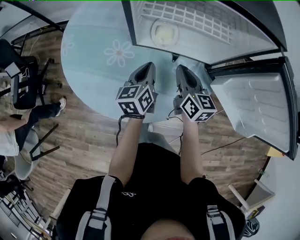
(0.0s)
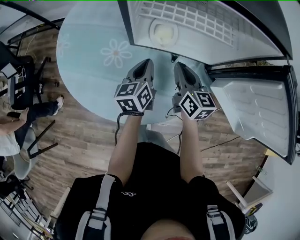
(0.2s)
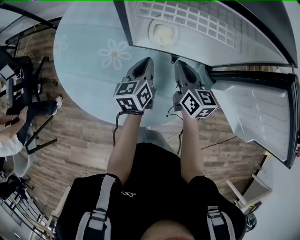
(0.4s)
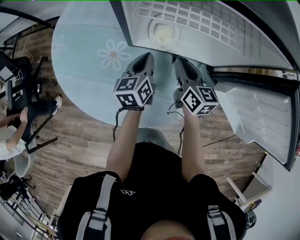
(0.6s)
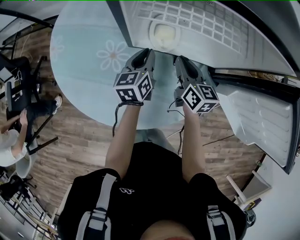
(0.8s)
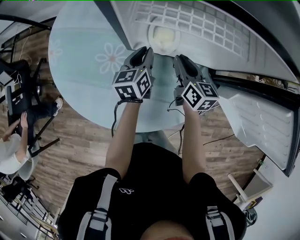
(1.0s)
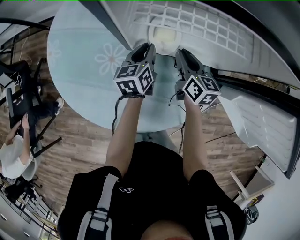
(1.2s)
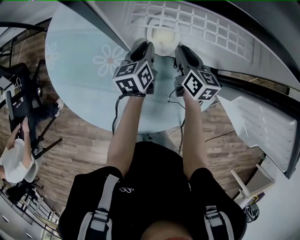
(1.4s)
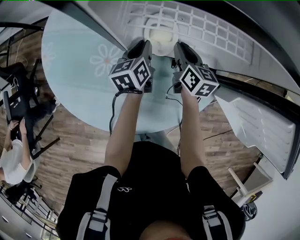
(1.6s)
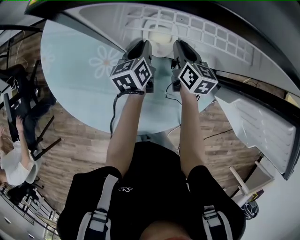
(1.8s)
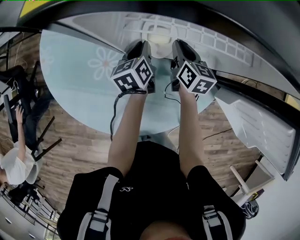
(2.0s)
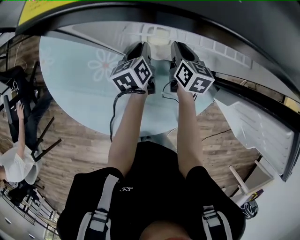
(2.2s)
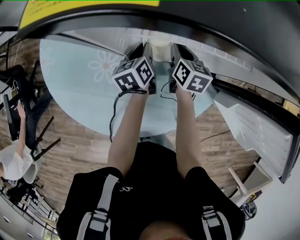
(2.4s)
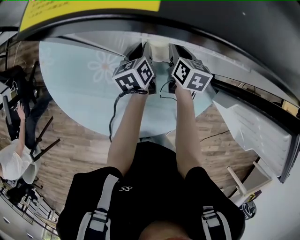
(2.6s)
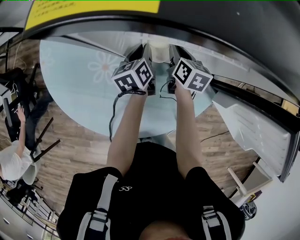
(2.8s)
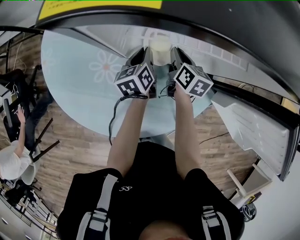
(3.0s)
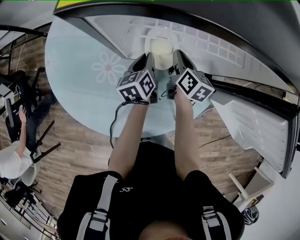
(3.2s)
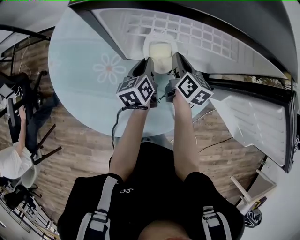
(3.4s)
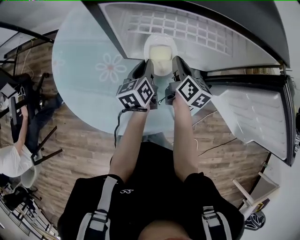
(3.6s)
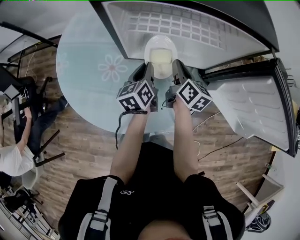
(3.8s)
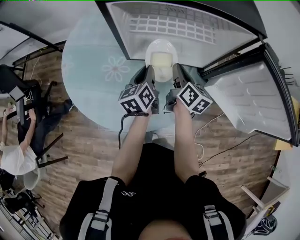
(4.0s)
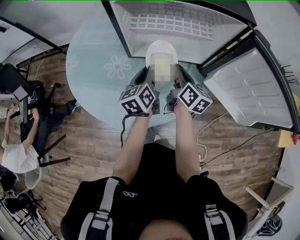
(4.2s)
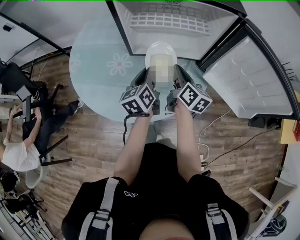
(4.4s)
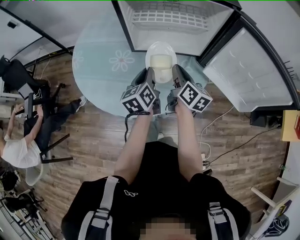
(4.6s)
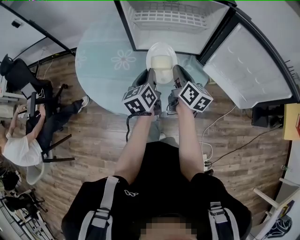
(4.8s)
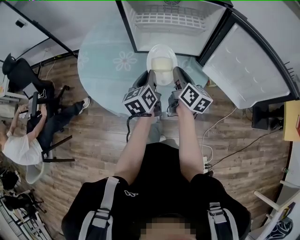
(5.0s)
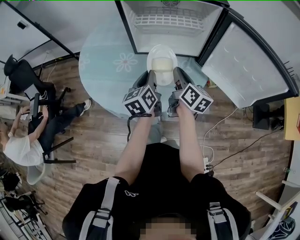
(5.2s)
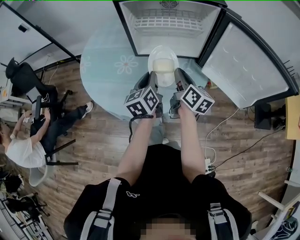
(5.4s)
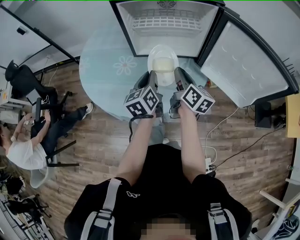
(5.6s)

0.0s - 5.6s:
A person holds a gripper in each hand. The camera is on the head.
0.0s - 1.4s: The two grippers go roughly 15 cm forward and downward.
1.4s - 2.8s: The grippers make only small movements.
2.8s - 4.2s: The grippers both shift backward and upward by about 20 cm. The right gripper changes its angle by roughly 30 degrees.
4.2s - 5.6s: The left gripper is displaced backward and upward by roughly 10 cm; the right gripper travels backward by approximately 10 cm.

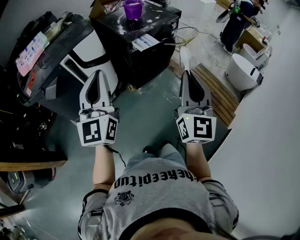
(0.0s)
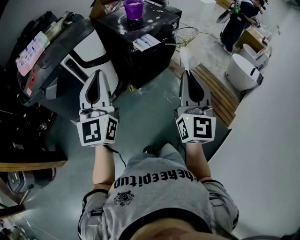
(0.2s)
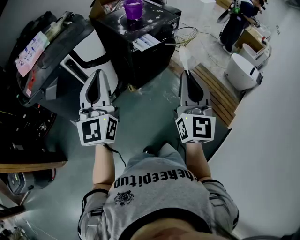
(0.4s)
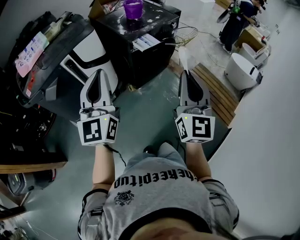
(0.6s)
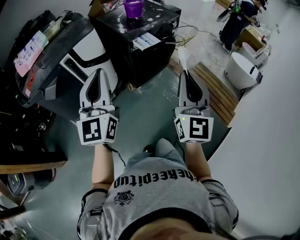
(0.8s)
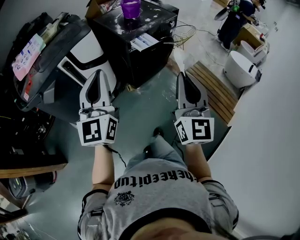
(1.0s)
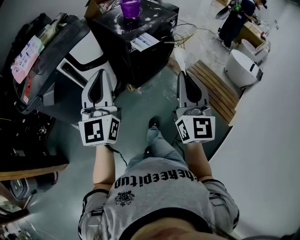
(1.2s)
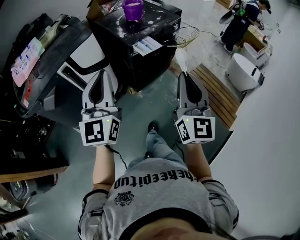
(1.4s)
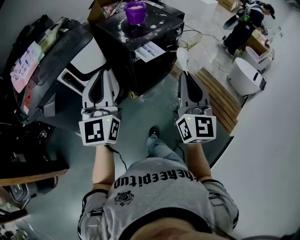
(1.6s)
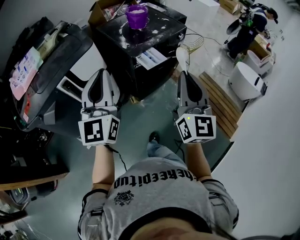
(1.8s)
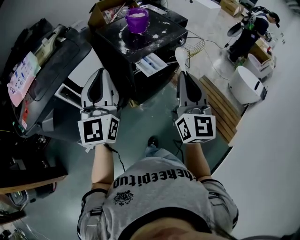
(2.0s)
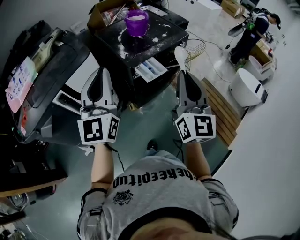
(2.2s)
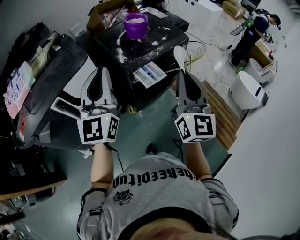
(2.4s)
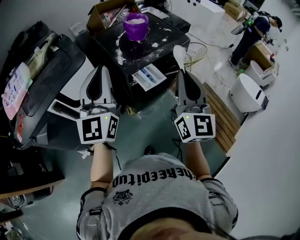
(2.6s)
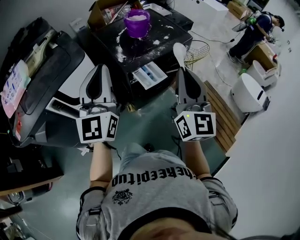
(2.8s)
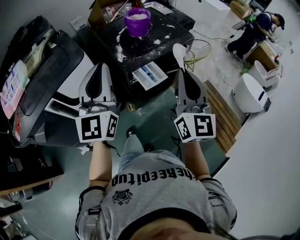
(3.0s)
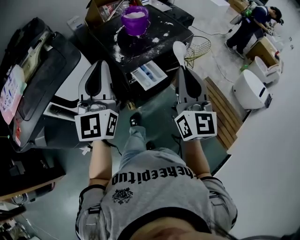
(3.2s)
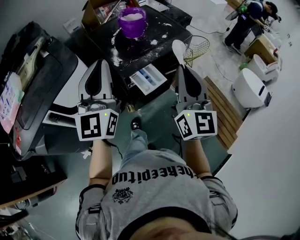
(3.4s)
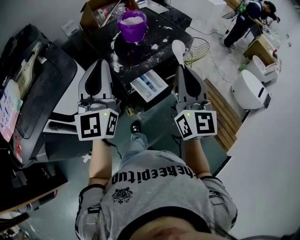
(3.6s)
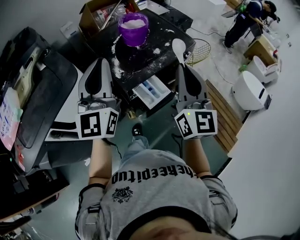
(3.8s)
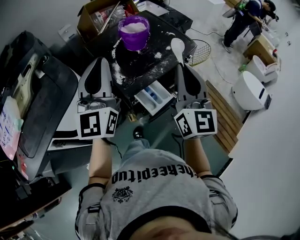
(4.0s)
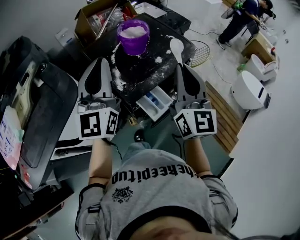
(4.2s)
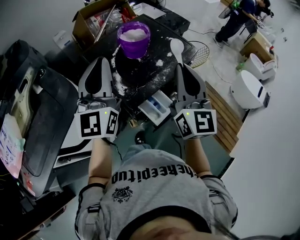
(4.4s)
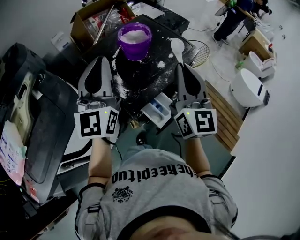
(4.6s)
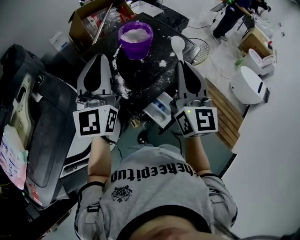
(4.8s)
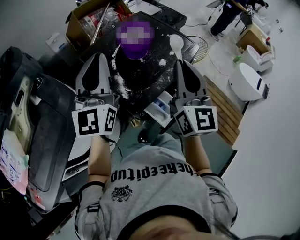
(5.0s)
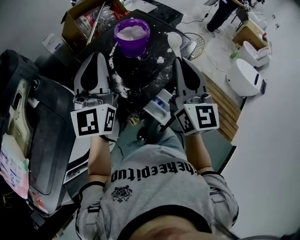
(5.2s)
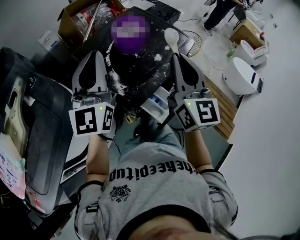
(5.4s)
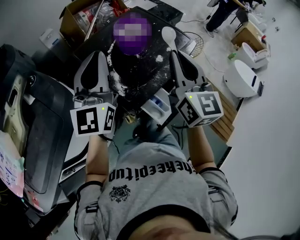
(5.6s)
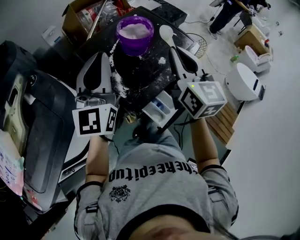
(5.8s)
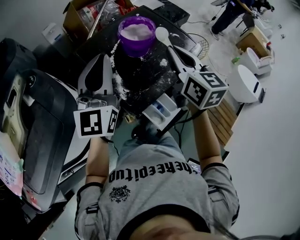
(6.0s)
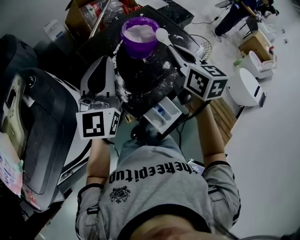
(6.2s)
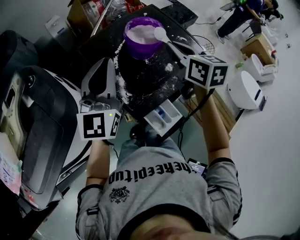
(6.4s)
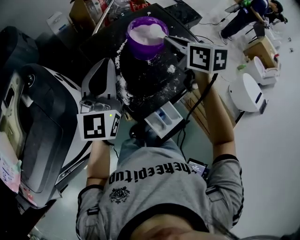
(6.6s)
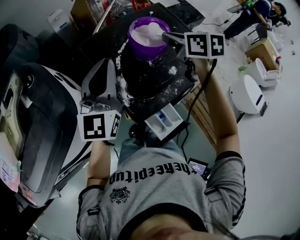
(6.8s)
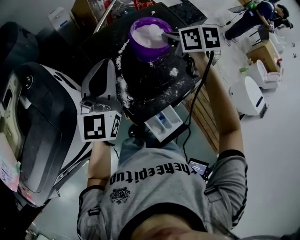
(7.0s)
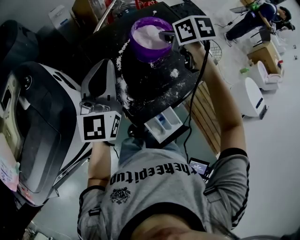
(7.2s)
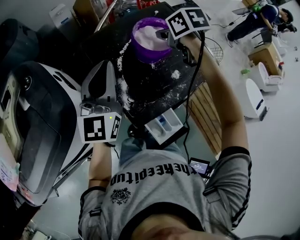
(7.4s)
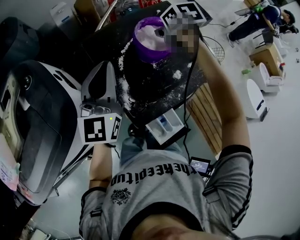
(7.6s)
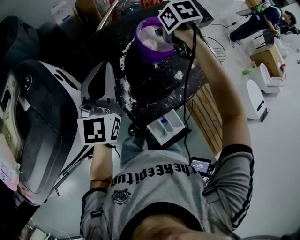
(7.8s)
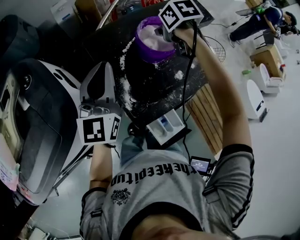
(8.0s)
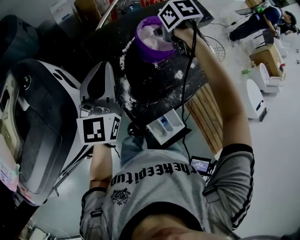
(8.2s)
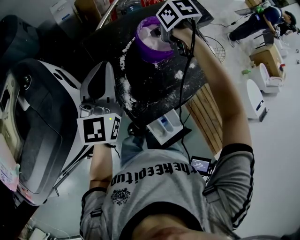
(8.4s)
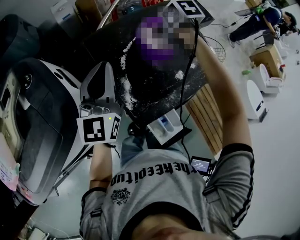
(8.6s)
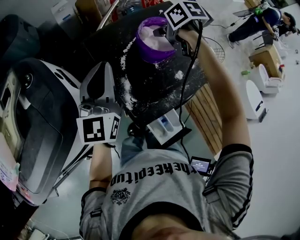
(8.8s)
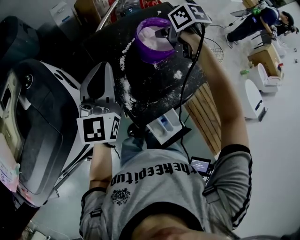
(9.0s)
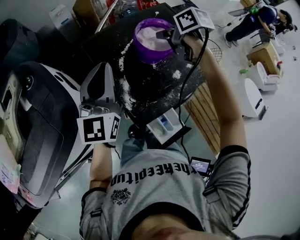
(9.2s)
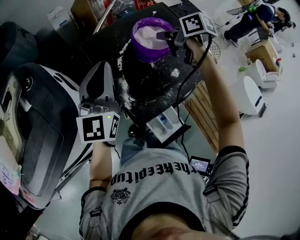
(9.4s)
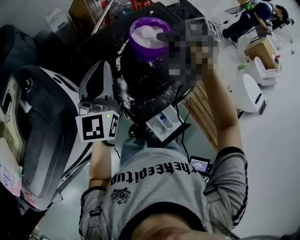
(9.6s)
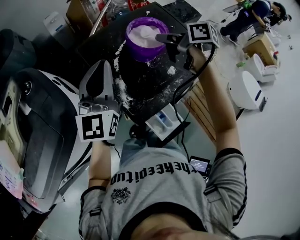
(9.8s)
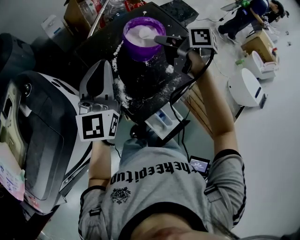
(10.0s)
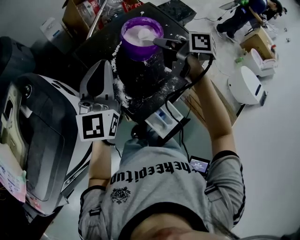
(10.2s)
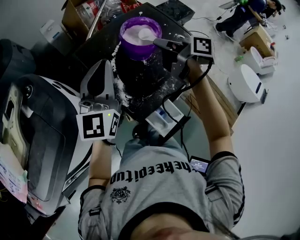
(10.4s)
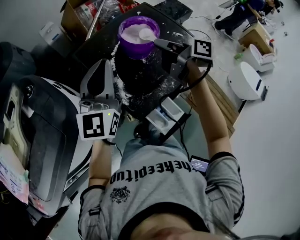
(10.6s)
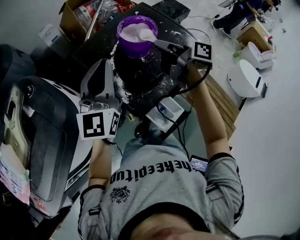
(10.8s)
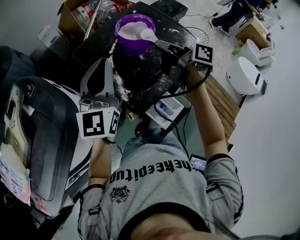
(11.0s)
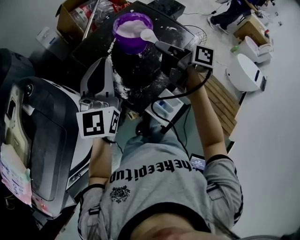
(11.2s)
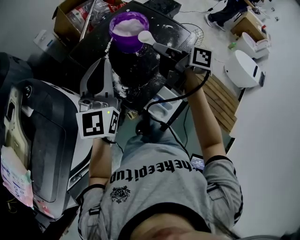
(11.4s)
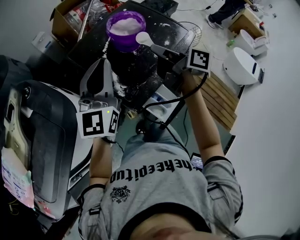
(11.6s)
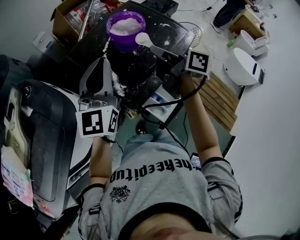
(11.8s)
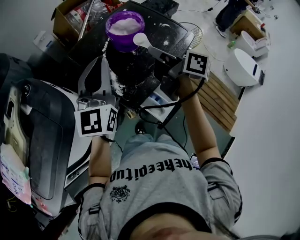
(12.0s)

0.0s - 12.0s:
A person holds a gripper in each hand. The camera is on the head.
0.0s - 1.6s: The two grippers go some 15 cm forward.
1.6s - 3.0s: The grippers both shift forward by roughly 25 cm.
3.0s - 4.4s: Both grippers travel together forward, roughly 25 cm.
4.4s - 6.0s: The right gripper heads forward and to the left, covering roughly 15 cm, and swivels roughly 30 degrees, while the left gripper shifts some 10 cm forward.
6.0s - 7.6s: The right gripper heads forward and downward, covering some 25 cm, and points its fingers approximately 50 degrees further downward; the left gripper travels forward and downward by about 10 cm.
7.6s - 9.0s: The grippers move only a little.
9.0s - 10.4s: The left gripper moves about 5 cm. The right gripper shifts roughly 10 cm backward, and tips its fingers upward by roughly 40 degrees.
10.4s - 12.0s: The right gripper moves backward, some 10 cm, while the left gripper moves backward, about 5 cm.

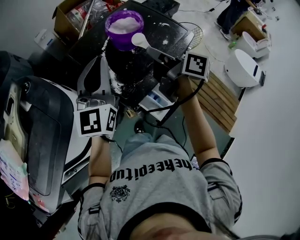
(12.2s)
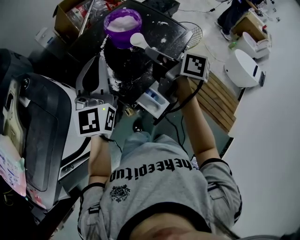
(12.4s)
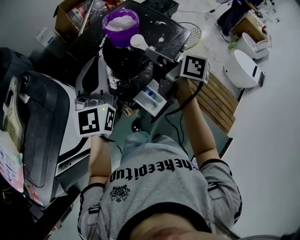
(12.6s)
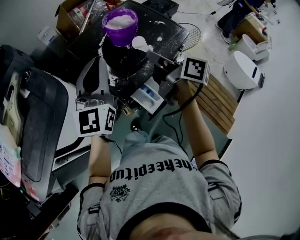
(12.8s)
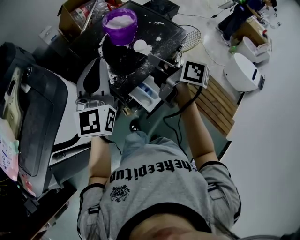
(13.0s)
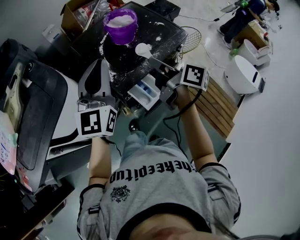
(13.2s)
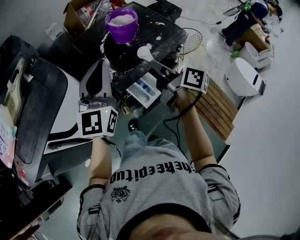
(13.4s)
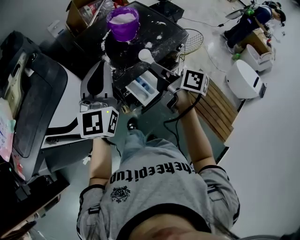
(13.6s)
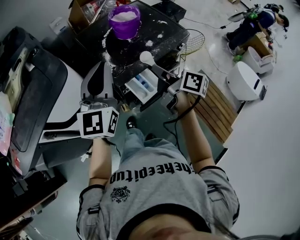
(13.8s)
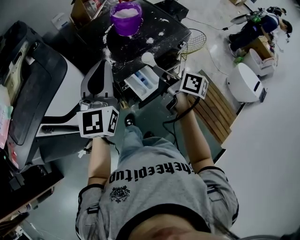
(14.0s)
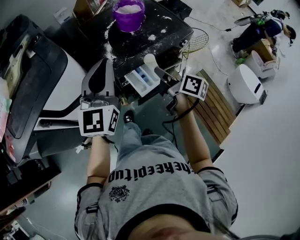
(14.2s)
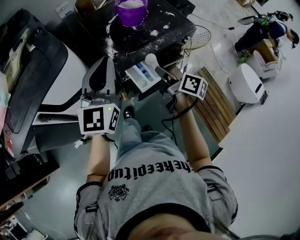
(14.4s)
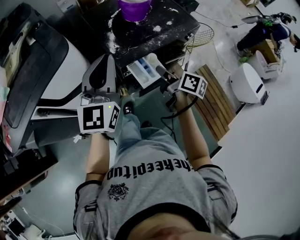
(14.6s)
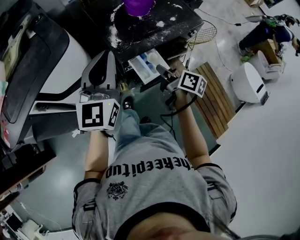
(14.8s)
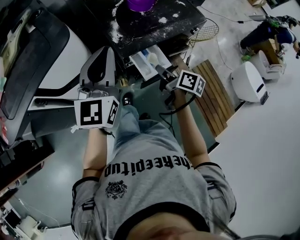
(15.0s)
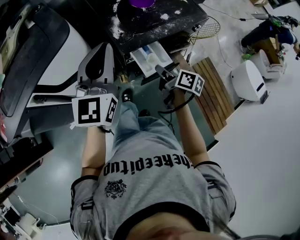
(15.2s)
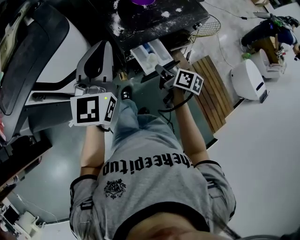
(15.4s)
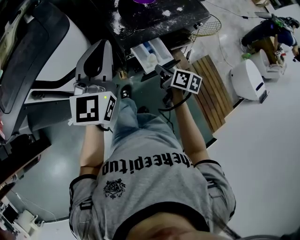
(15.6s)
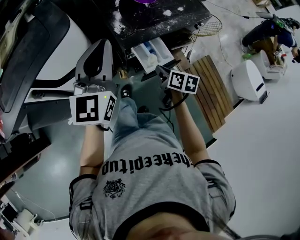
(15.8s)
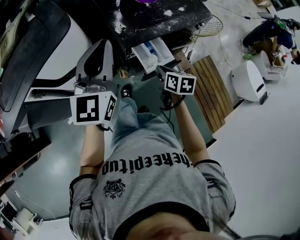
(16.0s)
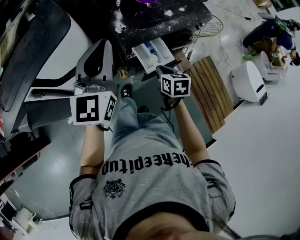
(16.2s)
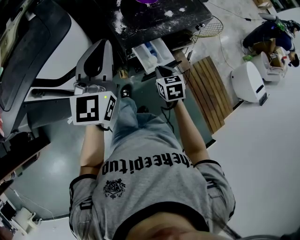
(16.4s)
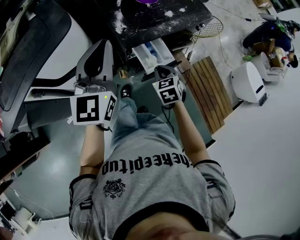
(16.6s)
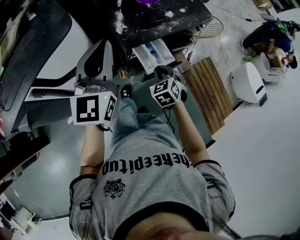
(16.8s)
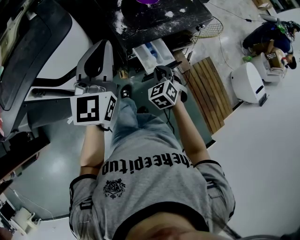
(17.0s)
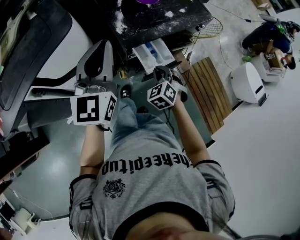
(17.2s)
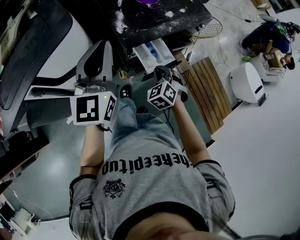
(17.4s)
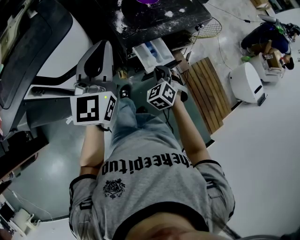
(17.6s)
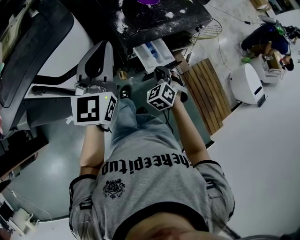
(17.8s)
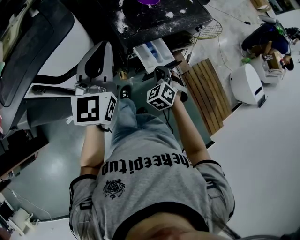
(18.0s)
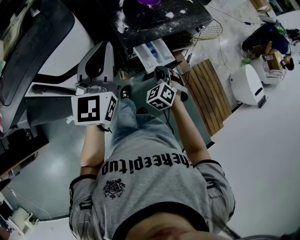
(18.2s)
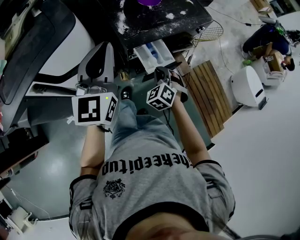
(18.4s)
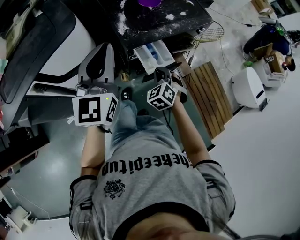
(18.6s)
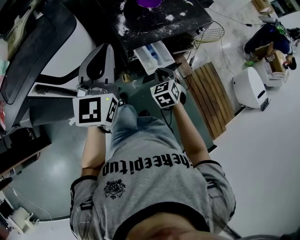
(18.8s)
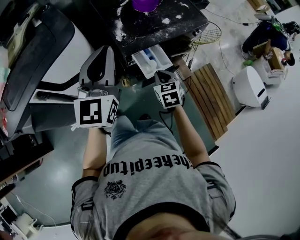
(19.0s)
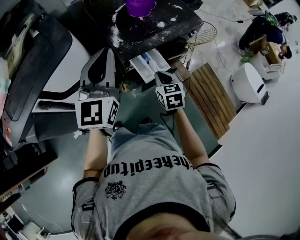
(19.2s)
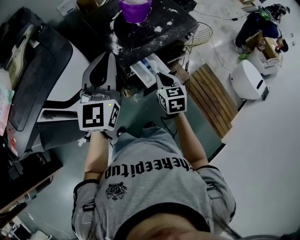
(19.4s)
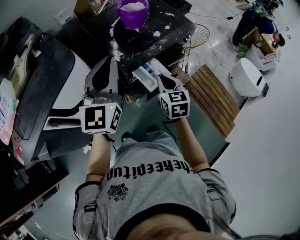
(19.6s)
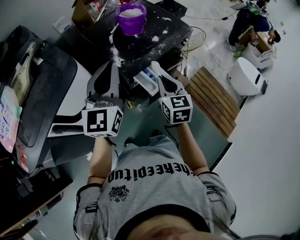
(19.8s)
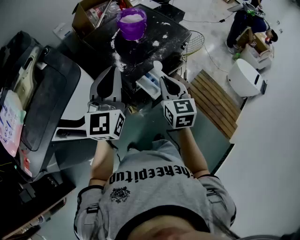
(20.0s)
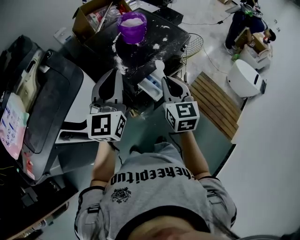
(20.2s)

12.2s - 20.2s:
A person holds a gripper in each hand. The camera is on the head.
12.2s - 13.8s: Both grippers move backward, approximately 15 cm.
13.8s - 15.4s: The left gripper moves about 5 cm, while the right gripper shifts some 15 cm downward.
15.4s - 17.0s: The right gripper rolls counterclockwise, seen from behind, by about 80 degrees.
17.0s - 18.6s: The grippers stay close to where they were, moving slightly.
18.6s - 20.2s: The left gripper is displaced upward by approximately 5 cm. The right gripper heads upward, covering roughly 25 cm, and rolls clockwise, seen from behind, by roughly 50 degrees.
